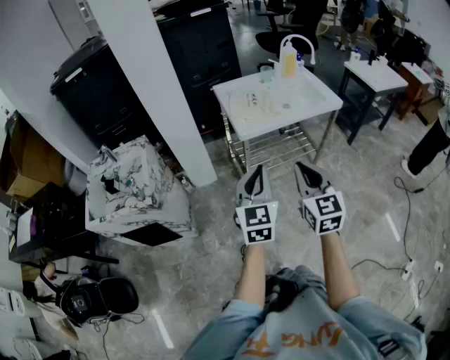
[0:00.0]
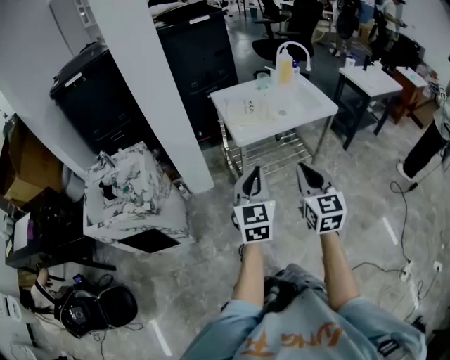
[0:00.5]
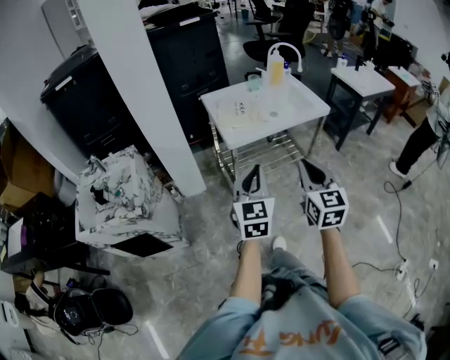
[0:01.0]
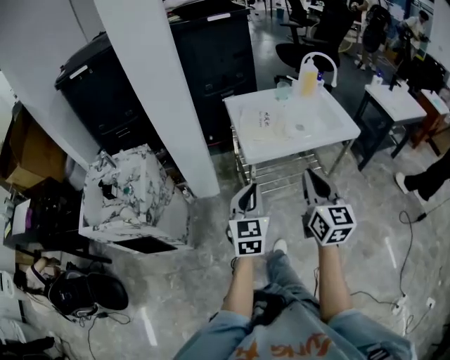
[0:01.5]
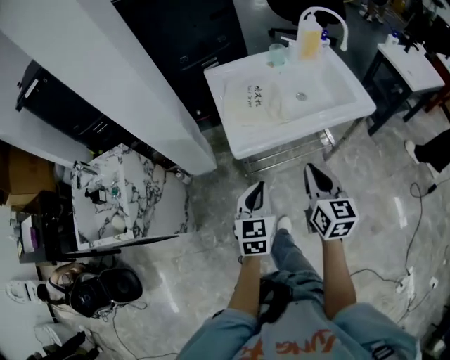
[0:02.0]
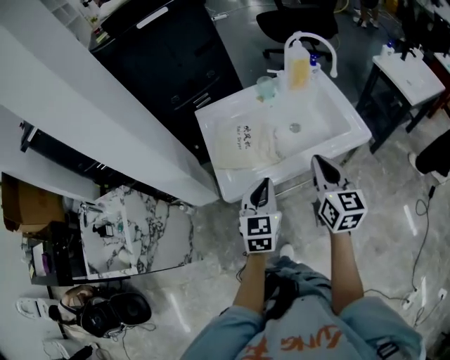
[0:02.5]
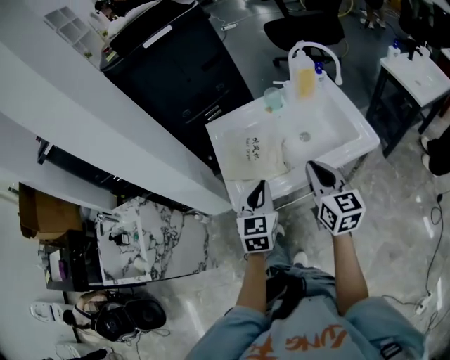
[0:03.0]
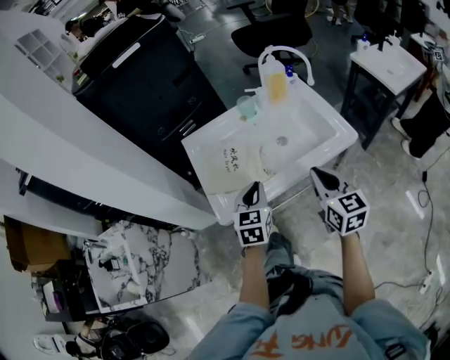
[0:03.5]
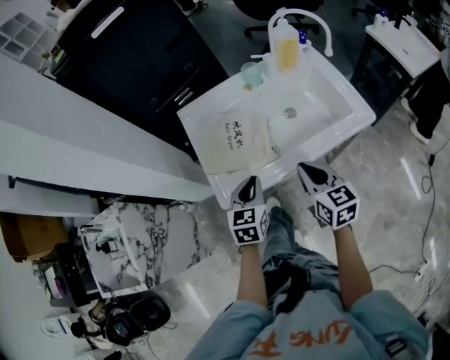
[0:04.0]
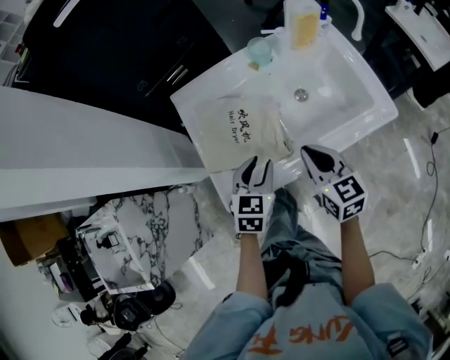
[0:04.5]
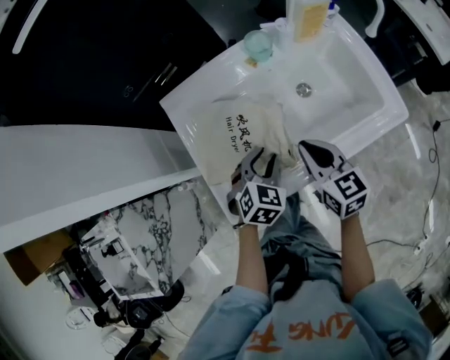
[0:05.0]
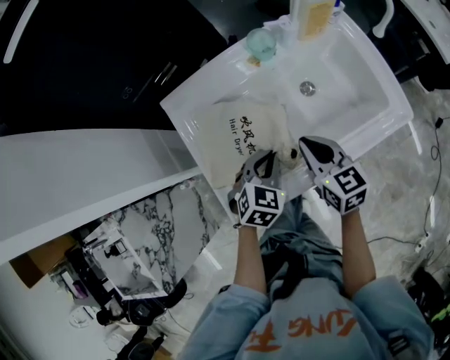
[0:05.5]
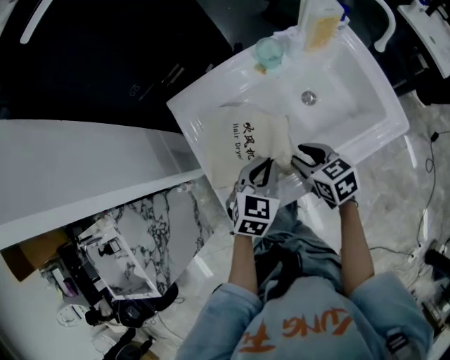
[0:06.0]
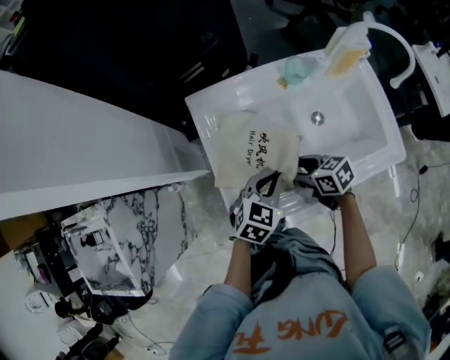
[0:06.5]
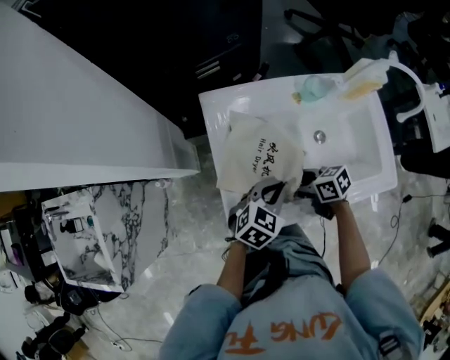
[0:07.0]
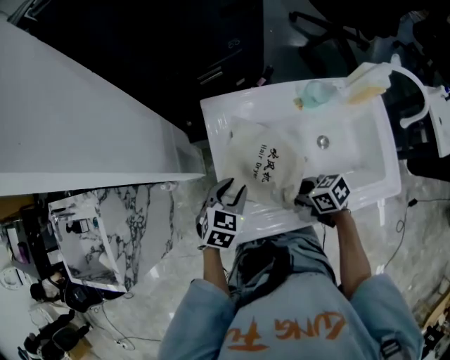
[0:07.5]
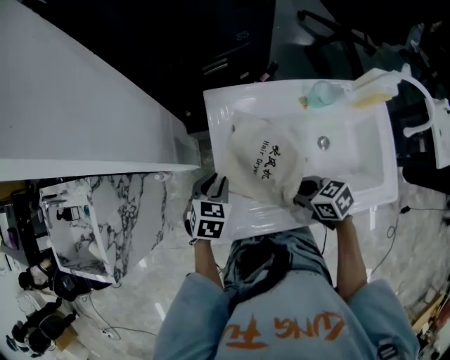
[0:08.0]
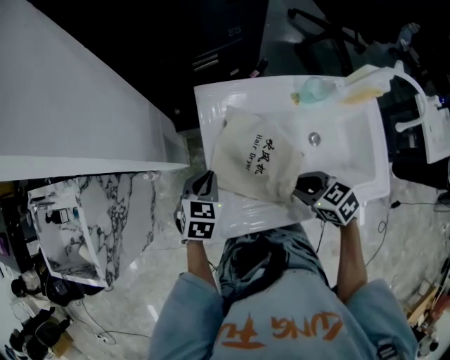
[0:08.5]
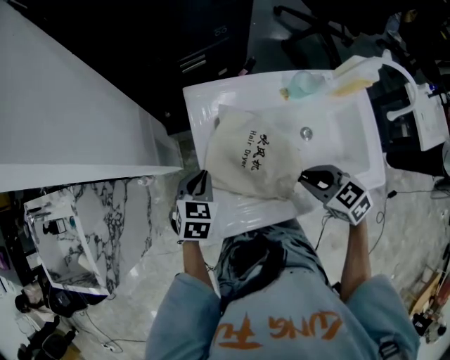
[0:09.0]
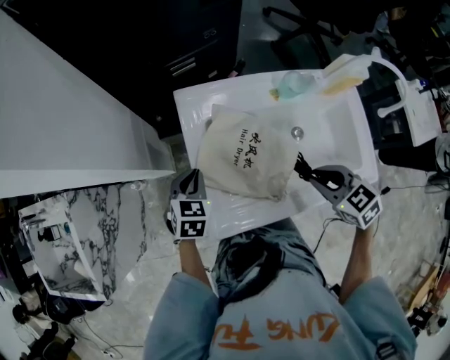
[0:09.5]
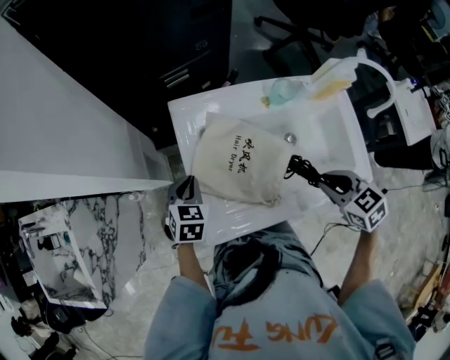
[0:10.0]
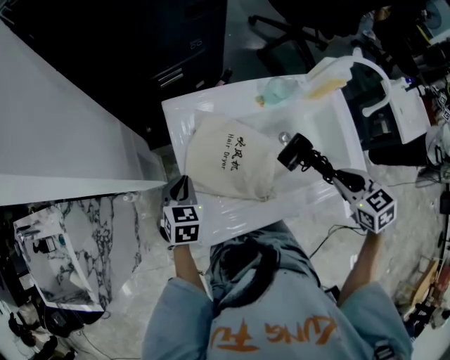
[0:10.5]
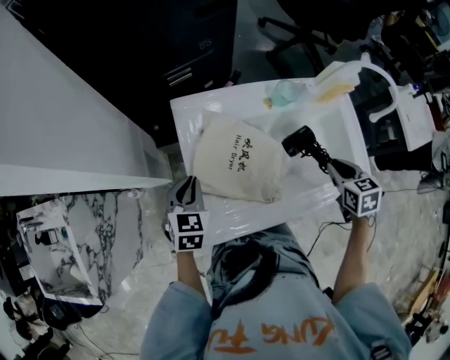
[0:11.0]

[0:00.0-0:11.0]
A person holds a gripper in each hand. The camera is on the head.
0:00.0 to 0:02.0: The right gripper is displaced forward by some 25 cm, and swivels about 20 degrees. The left gripper heads forward and downward, covering roughly 25 cm, and changes its angle by roughly 20 degrees.
0:02.0 to 0:03.5: The two grippers go approximately 20 cm forward and to the right.
0:03.5 to 0:05.5: The left gripper moves downward and forward, about 20 cm, rotates about 30 degrees, and opens, then closes once more. Meanwhile the right gripper shifts some 25 cm forward, downward and to the left.
0:05.5 to 0:07.5: The left gripper ends up some 15 cm from where it was, changes its angle by about 20 degrees, and opens up; the right gripper shifts by approximately 10 cm, turns by some 50 degrees, and opens, then closes once more.
0:07.5 to 0:09.0: The right gripper moves upward and to the right, about 10 cm, and turns by approximately 30 degrees. Meanwhile the left gripper ends up roughly 5 cm from where it was, and closes.
0:09.0 to 0:11.0: The right gripper is displaced to the right by some 15 cm, and rotates approximately 40 degrees.

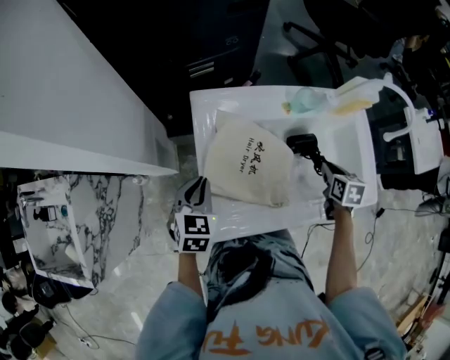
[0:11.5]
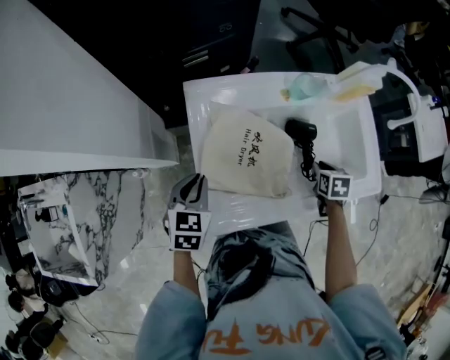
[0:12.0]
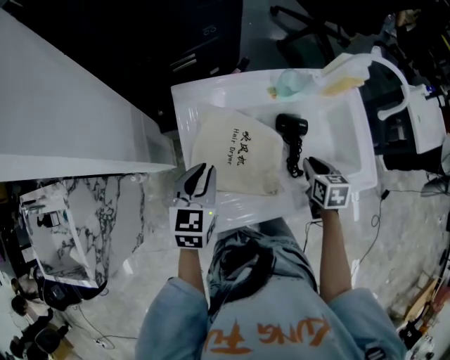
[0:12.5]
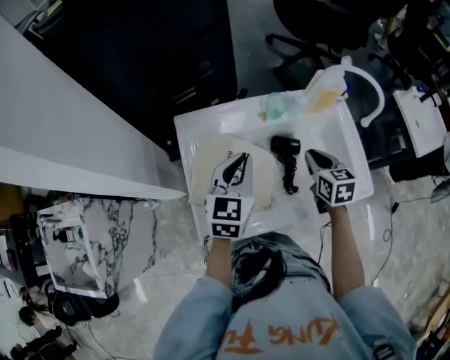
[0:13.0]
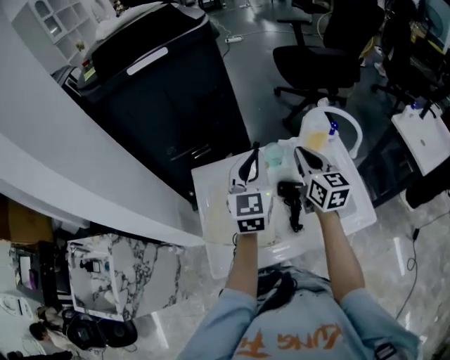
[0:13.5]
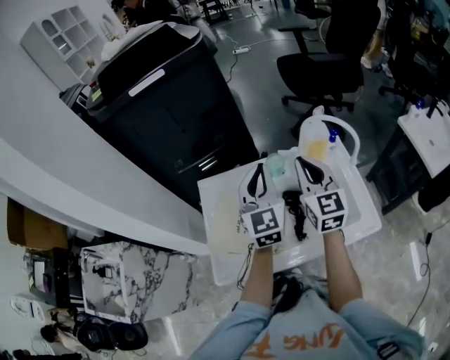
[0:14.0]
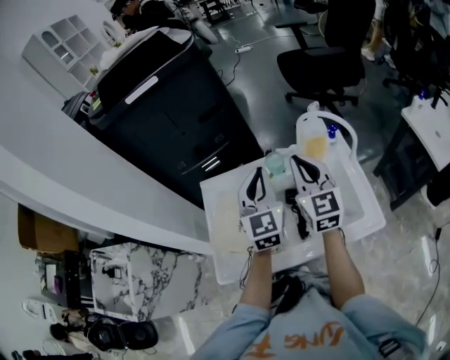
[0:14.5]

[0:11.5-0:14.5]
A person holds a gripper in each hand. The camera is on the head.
0:11.5 to 0:13.0: The right gripper moves upward, approximately 10 cm; the left gripper goes approximately 25 cm to the right, upward and forward, and changes its angle by roughly 20 degrees.
0:13.0 to 0:14.5: The left gripper heads upward and to the right, covering about 15 cm, and rotates about 30 degrees. Meanwhile the right gripper is displaced upward by about 20 cm, and points its fingers approximately 30 degrees further upward.

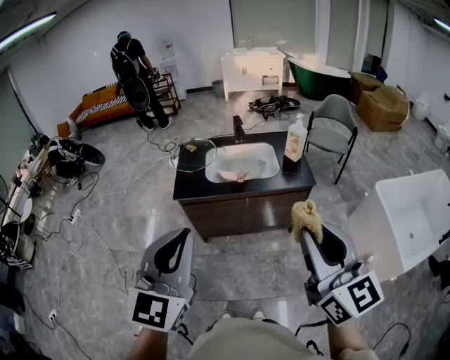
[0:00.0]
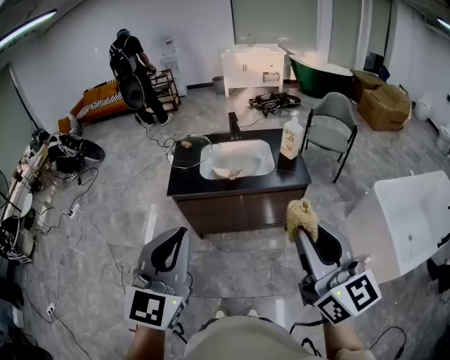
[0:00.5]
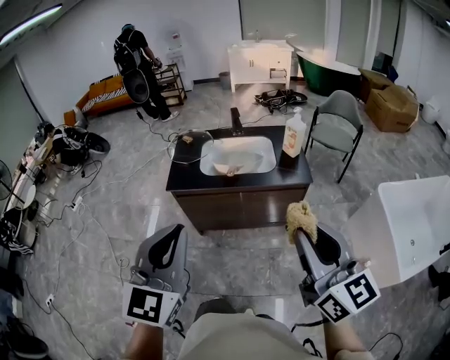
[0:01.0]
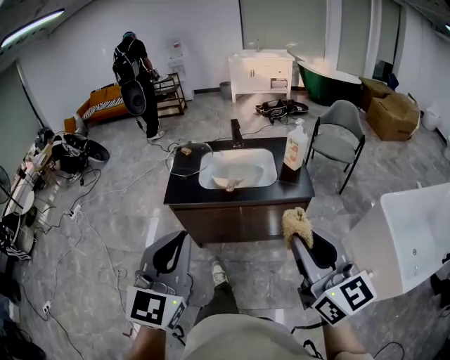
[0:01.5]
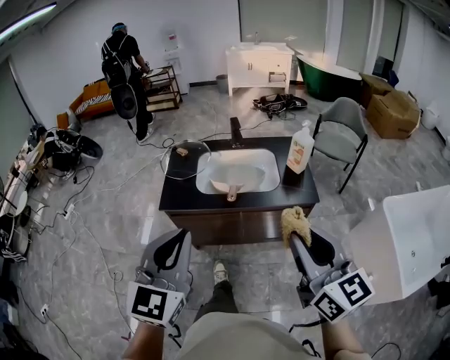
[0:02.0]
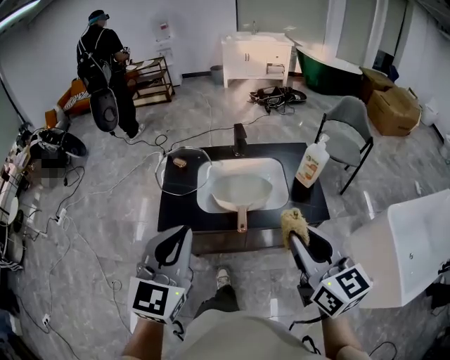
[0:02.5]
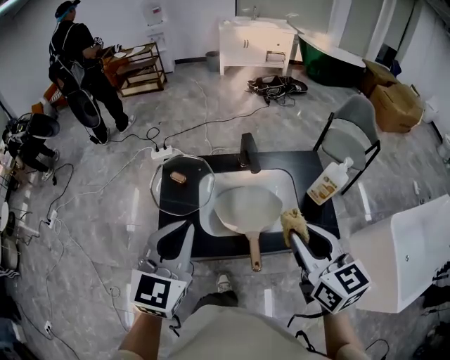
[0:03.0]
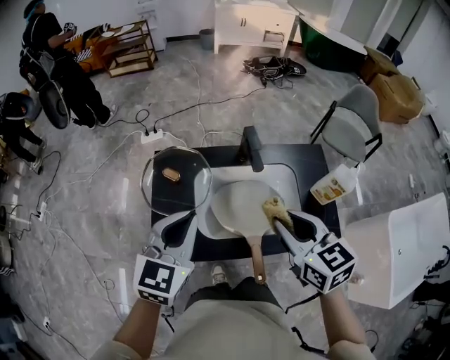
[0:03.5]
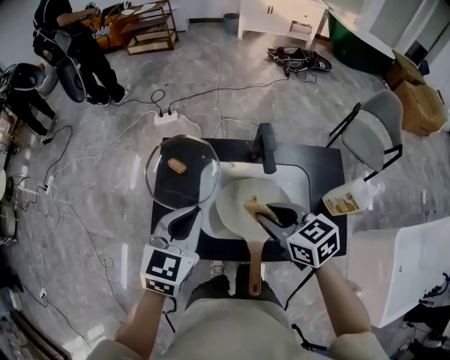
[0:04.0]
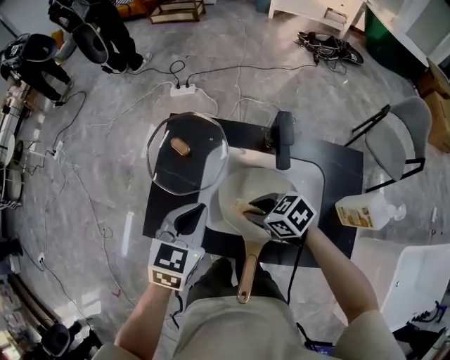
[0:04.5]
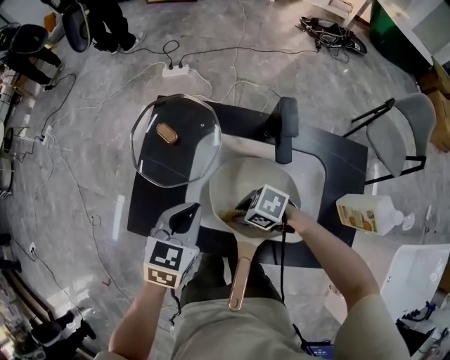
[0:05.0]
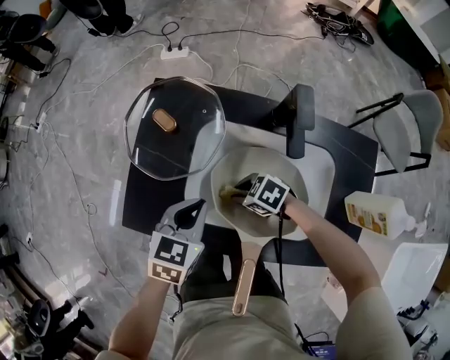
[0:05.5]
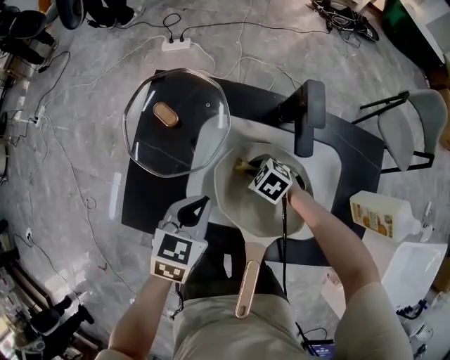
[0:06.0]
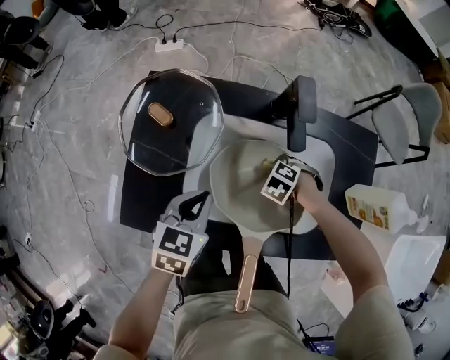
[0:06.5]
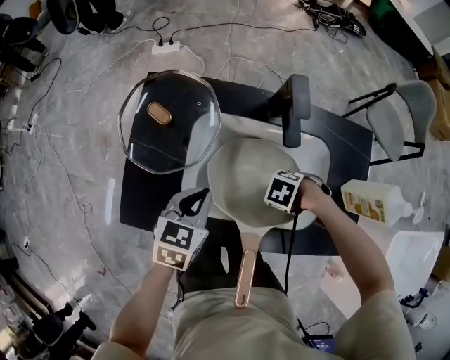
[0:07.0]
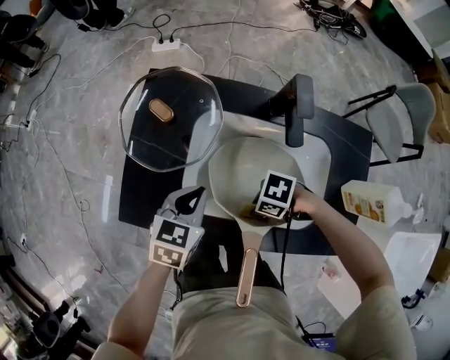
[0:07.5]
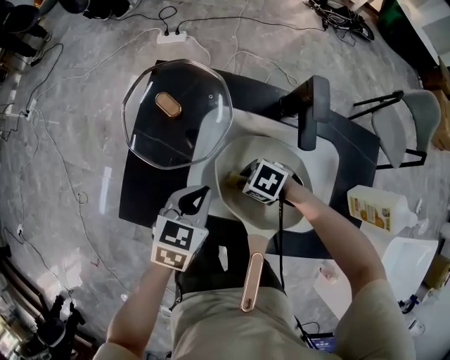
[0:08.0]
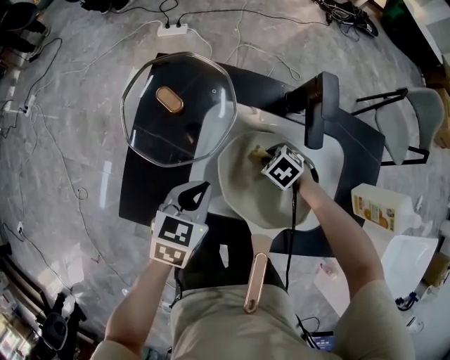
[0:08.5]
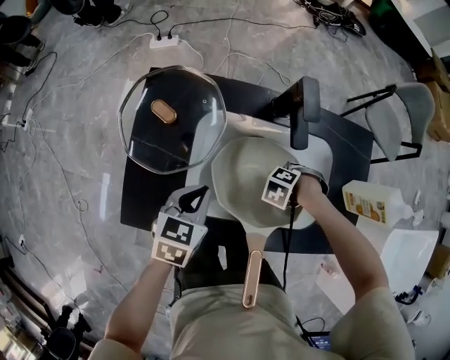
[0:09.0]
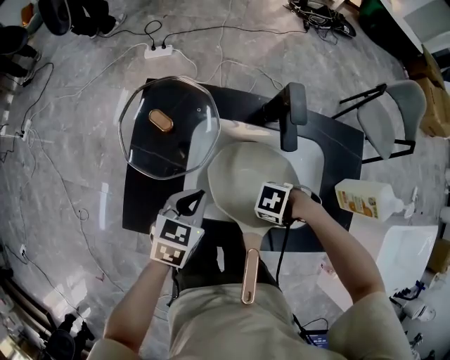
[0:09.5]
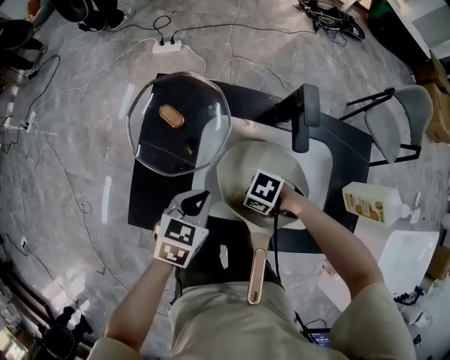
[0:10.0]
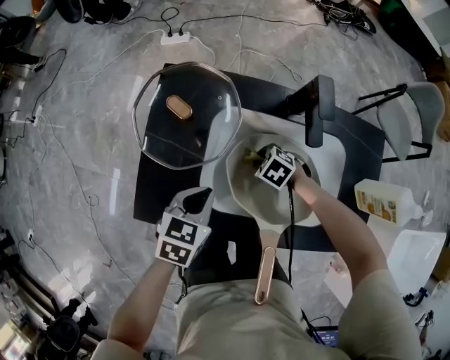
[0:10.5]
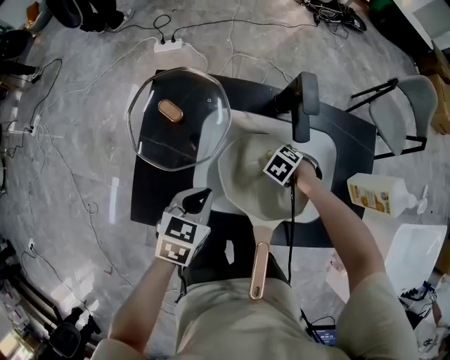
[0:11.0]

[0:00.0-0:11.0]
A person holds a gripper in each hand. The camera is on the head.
0:00.0 to 0:02.0: The two grippers go some 15 cm forward and downward.
0:02.0 to 0:03.5: The two grippers travel together, forward, roughly 40 cm. The right gripper changes its angle by roughly 30 degrees.
0:03.5 to 0:05.5: The right gripper is displaced downward by approximately 40 cm, and swivels about 70 degrees. Meanwhile the left gripper moves downward, approximately 25 cm, and turns by some 30 degrees.
0:05.5 to 0:07.5: The right gripper changes its angle by roughly 30 degrees.
0:07.5 to 0:09.0: The right gripper moves about 15 cm, and swivels approximately 40 degrees.
0:09.0 to 0:11.0: The right gripper travels upward and back again, roughly 5 cm each way, and rotates some 20 degrees.

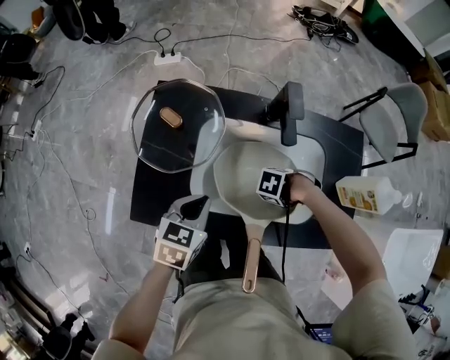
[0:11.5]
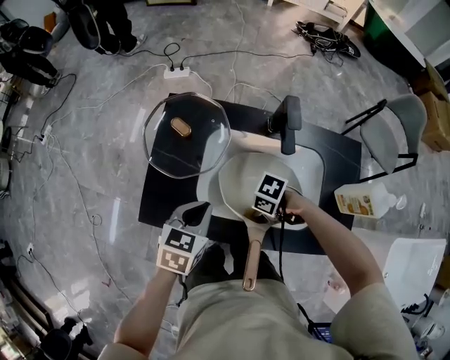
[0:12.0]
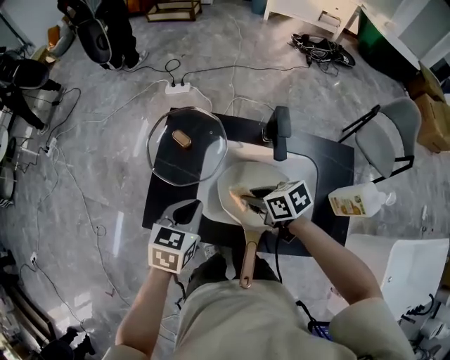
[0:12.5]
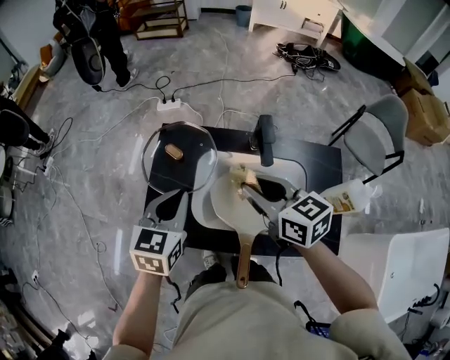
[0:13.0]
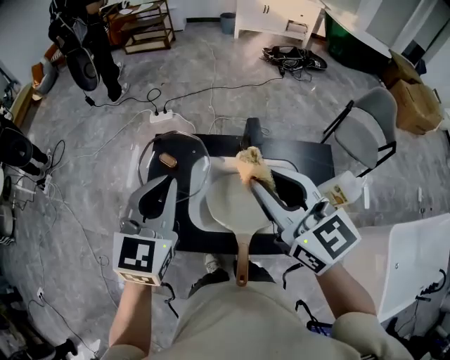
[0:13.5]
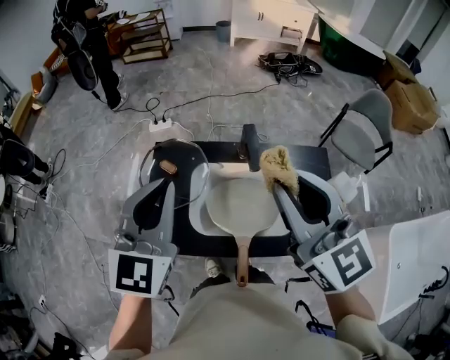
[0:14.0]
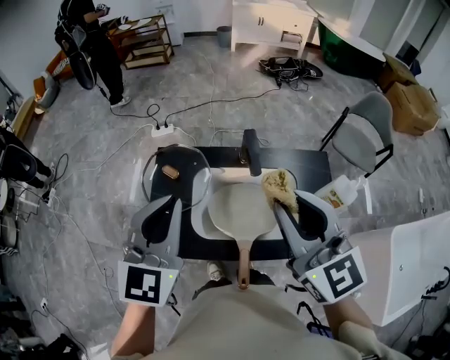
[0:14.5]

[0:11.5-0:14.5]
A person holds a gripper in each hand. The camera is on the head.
0:11.5 to 0:13.0: The right gripper goes about 35 cm upward, and angles its fingers upward, by about 40 degrees; the left gripper is displaced upward by roughly 15 cm, and turns by approximately 20 degrees.
0:13.0 to 0:14.5: The left gripper travels upward by about 15 cm, and rotates approximately 20 degrees. Meanwhile the right gripper shifts some 20 cm upward and backward, and changes its angle by roughly 40 degrees.
